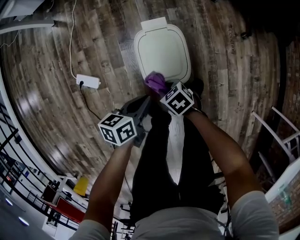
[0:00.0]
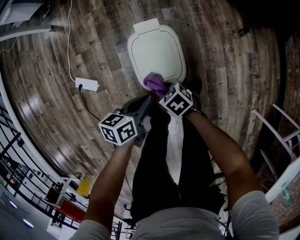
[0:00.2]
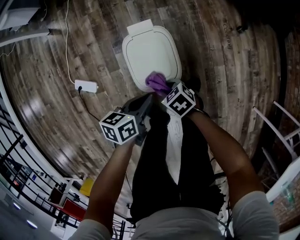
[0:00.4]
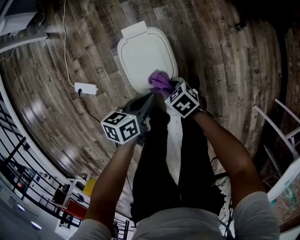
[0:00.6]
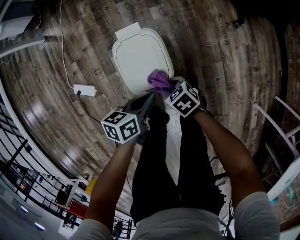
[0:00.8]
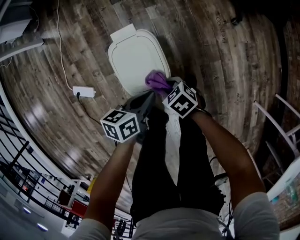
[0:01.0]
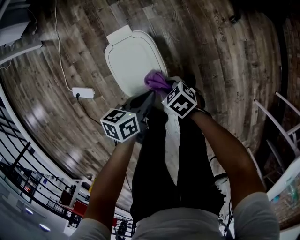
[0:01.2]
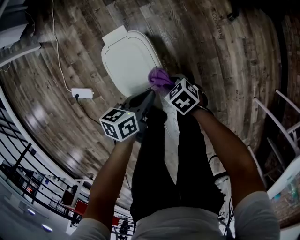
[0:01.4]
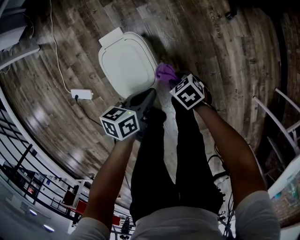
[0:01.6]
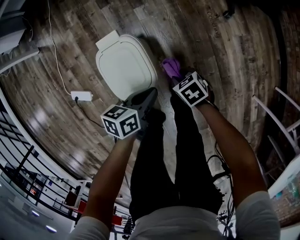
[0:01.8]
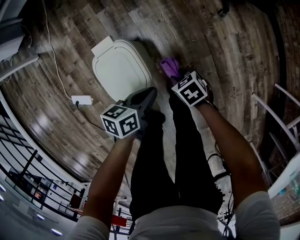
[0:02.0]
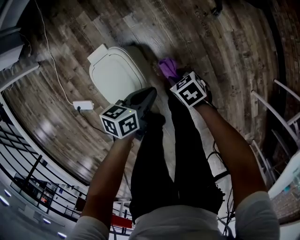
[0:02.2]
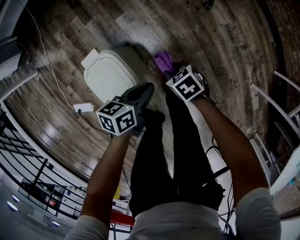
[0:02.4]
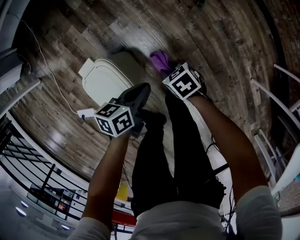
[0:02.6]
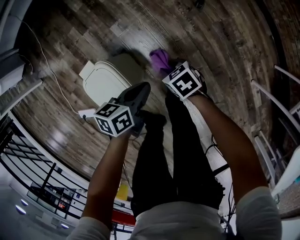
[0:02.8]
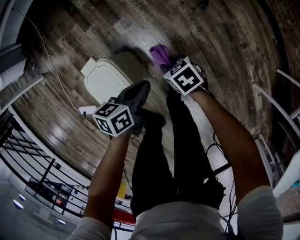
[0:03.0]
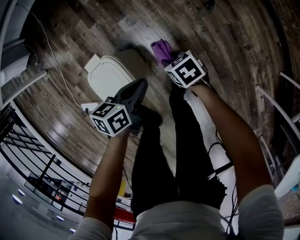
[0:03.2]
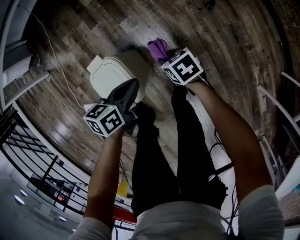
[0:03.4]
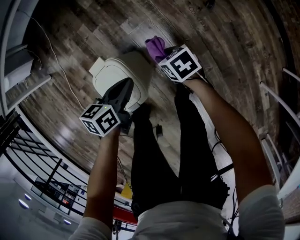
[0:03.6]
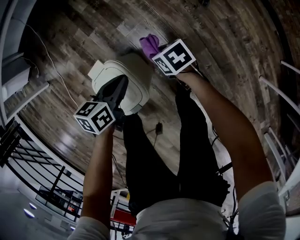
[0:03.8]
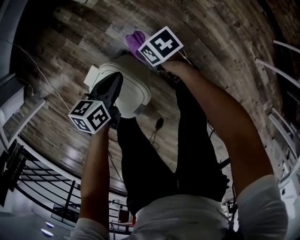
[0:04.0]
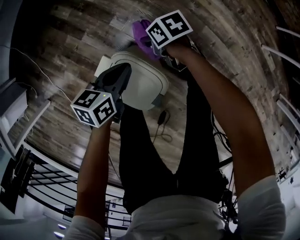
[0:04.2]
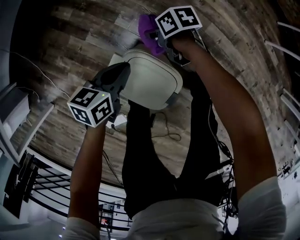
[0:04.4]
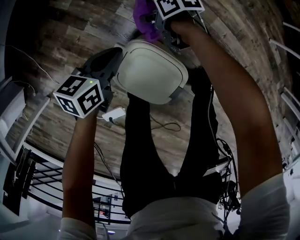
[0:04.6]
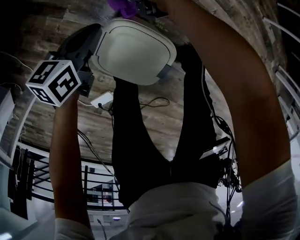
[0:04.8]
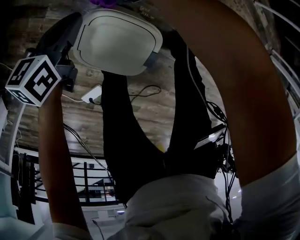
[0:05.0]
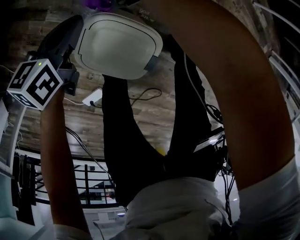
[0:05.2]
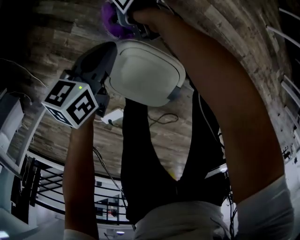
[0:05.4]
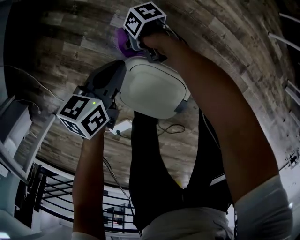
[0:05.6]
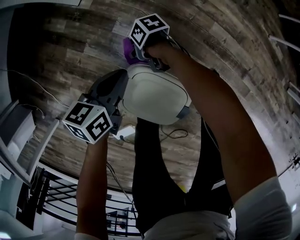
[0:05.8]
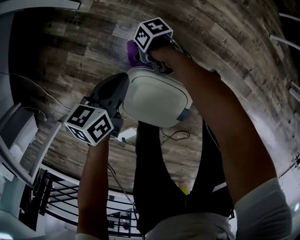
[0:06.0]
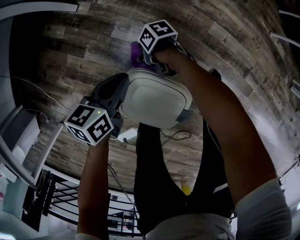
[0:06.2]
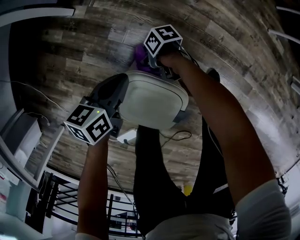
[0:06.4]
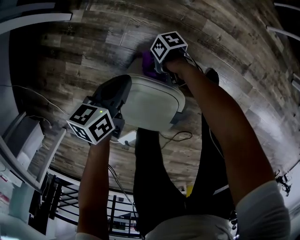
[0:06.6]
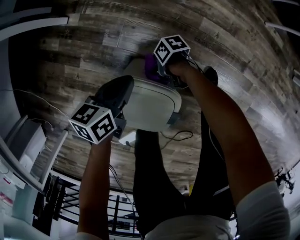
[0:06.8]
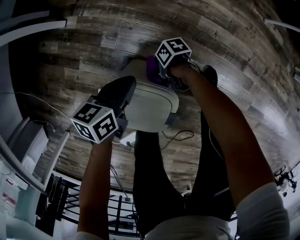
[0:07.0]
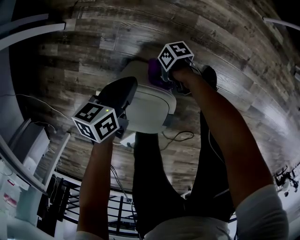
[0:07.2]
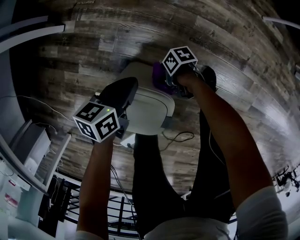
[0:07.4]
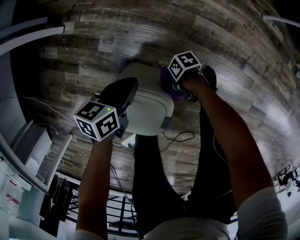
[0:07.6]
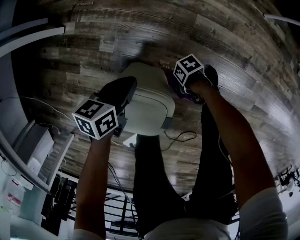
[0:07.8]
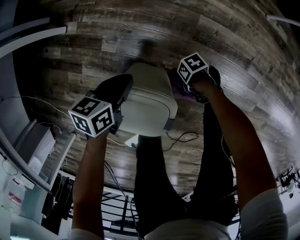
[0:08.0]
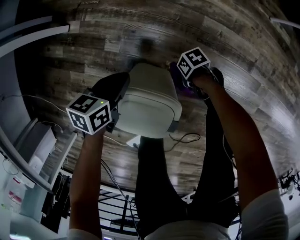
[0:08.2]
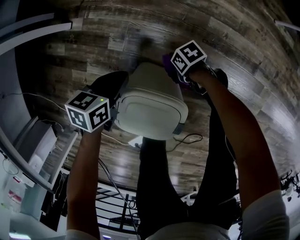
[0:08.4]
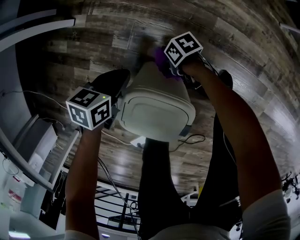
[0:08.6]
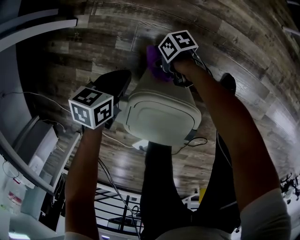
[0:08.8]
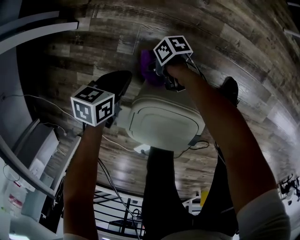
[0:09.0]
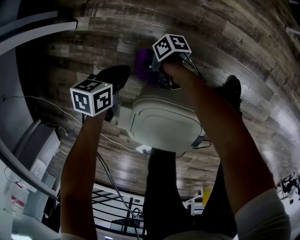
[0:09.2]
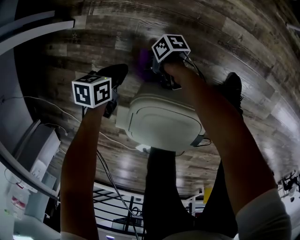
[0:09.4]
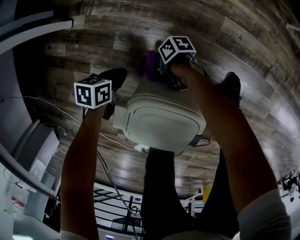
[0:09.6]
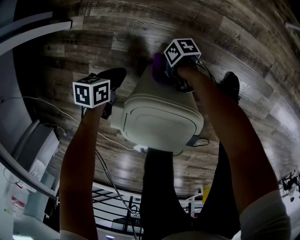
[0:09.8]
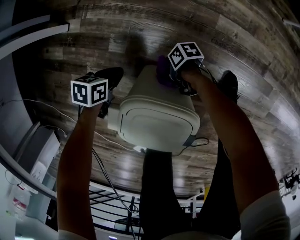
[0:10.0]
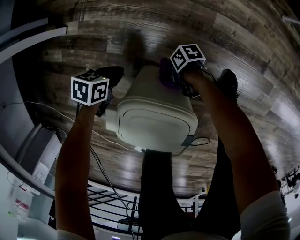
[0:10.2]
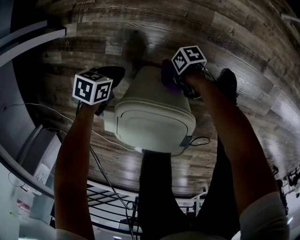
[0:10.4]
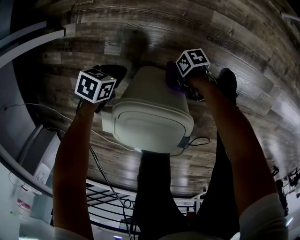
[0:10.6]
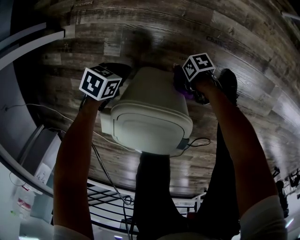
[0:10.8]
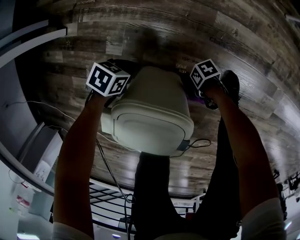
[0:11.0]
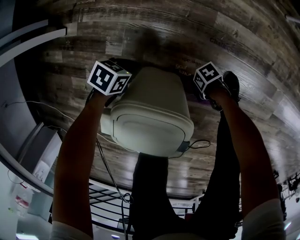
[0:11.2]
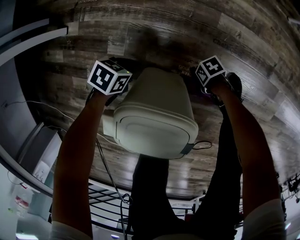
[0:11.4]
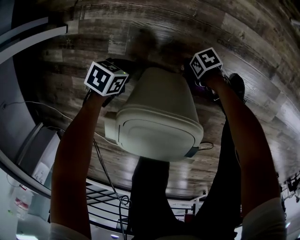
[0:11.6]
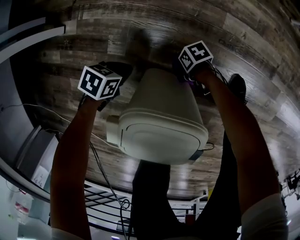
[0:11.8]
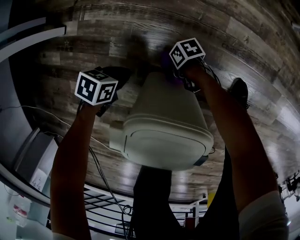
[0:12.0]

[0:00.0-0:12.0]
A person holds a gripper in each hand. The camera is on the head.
0:00.0 to 0:01.6: The left gripper shifts by roughly 15 cm.
0:01.6 to 0:03.0: The left gripper ends up some 15 cm from where it was.
0:03.0 to 0:04.4: The left gripper moves about 20 cm, and turns by approximately 30 degrees.
0:06.0 to 0:07.6: The left gripper shifts by about 15 cm.
0:07.6 to 0:09.0: The left gripper ends up some 15 cm from where it was.
0:09.0 to 0:10.4: The left gripper is displaced downward by some 10 cm.
0:10.4 to 0:12.0: The left gripper moves downward, approximately 5 cm.

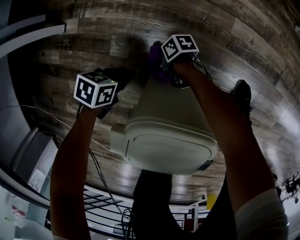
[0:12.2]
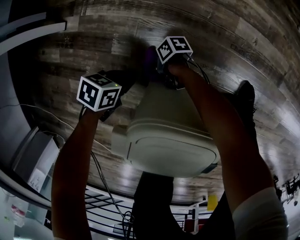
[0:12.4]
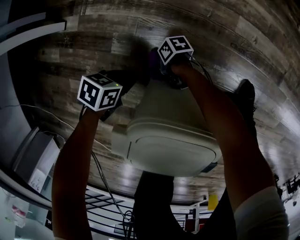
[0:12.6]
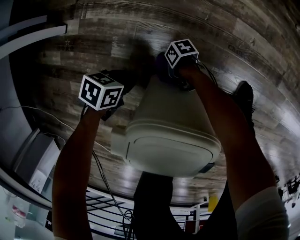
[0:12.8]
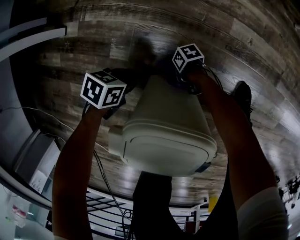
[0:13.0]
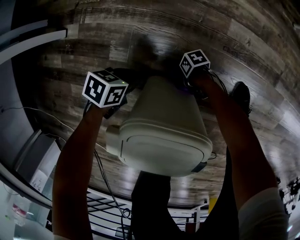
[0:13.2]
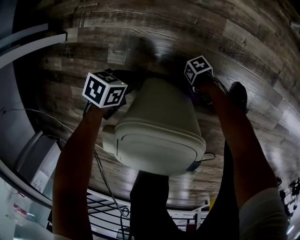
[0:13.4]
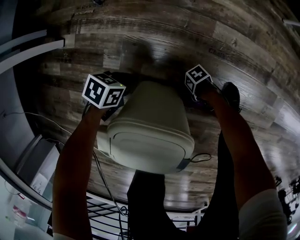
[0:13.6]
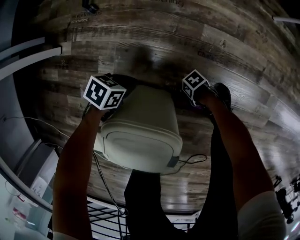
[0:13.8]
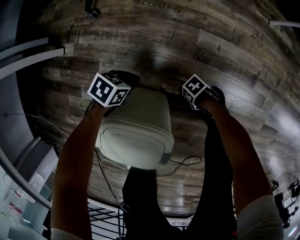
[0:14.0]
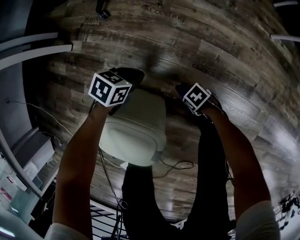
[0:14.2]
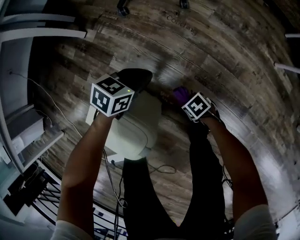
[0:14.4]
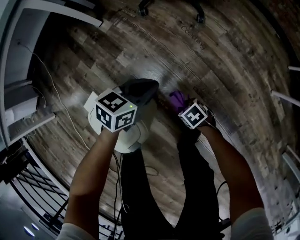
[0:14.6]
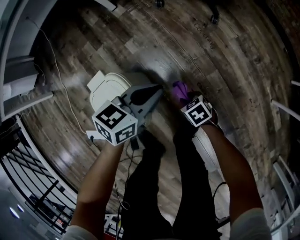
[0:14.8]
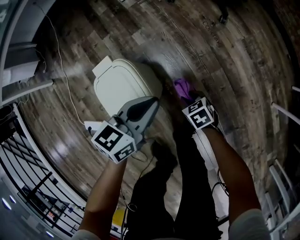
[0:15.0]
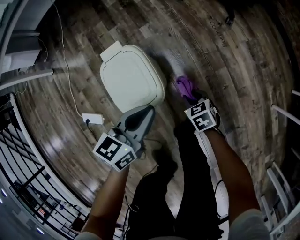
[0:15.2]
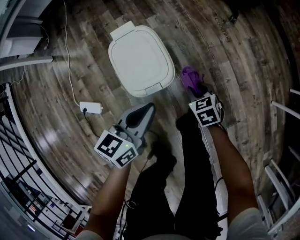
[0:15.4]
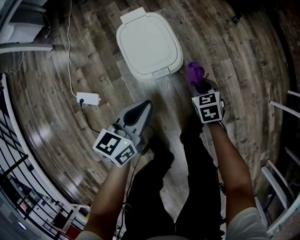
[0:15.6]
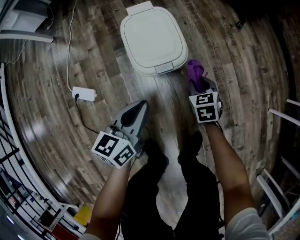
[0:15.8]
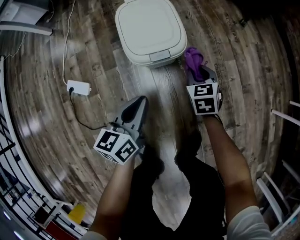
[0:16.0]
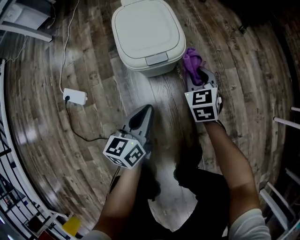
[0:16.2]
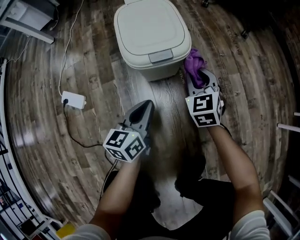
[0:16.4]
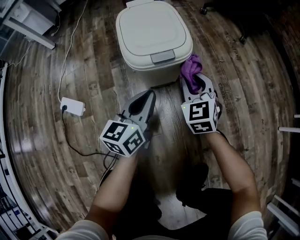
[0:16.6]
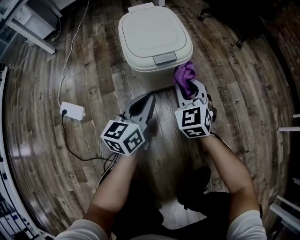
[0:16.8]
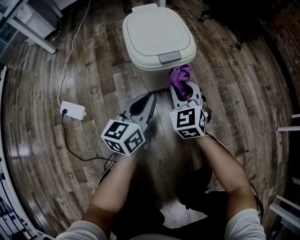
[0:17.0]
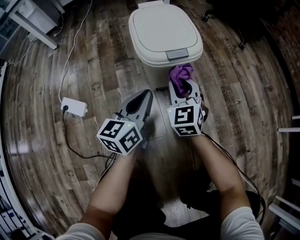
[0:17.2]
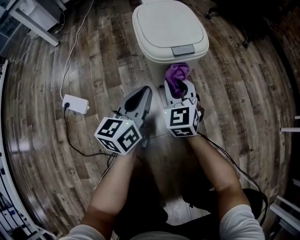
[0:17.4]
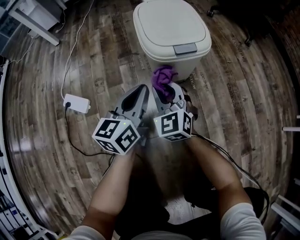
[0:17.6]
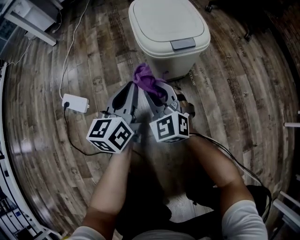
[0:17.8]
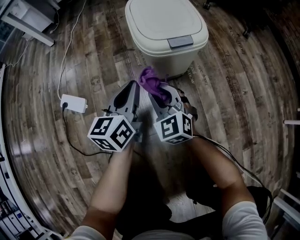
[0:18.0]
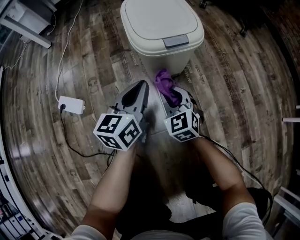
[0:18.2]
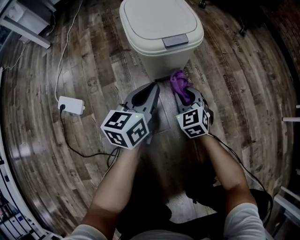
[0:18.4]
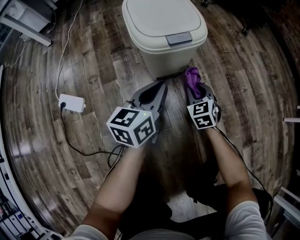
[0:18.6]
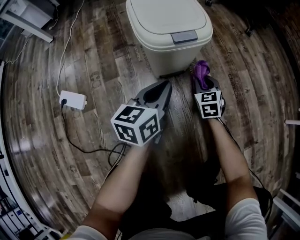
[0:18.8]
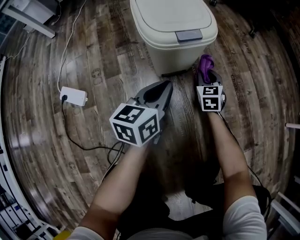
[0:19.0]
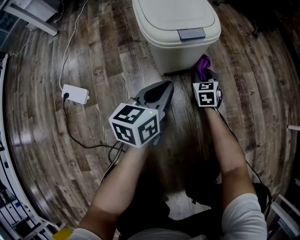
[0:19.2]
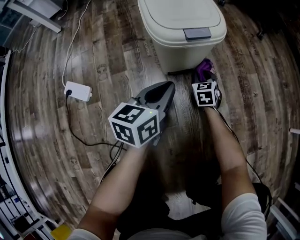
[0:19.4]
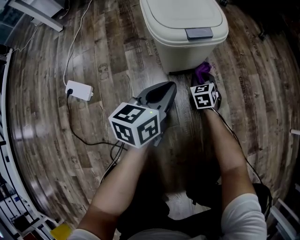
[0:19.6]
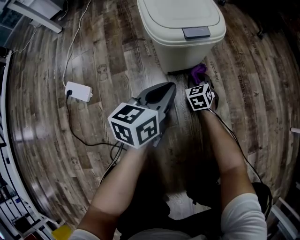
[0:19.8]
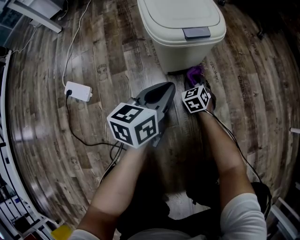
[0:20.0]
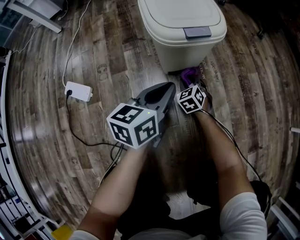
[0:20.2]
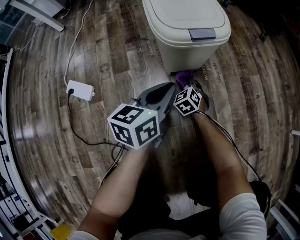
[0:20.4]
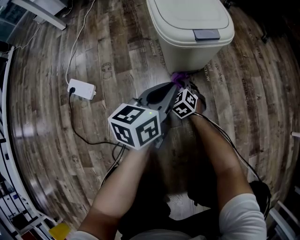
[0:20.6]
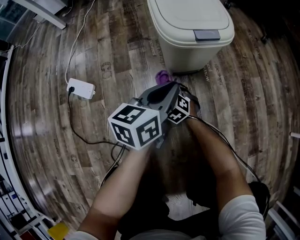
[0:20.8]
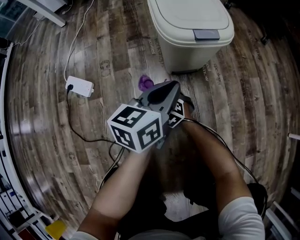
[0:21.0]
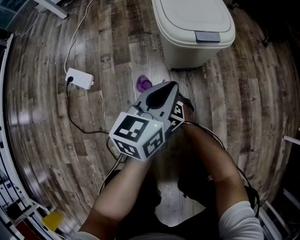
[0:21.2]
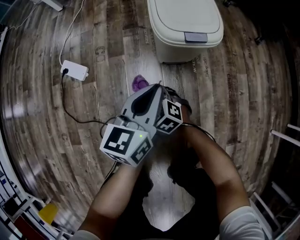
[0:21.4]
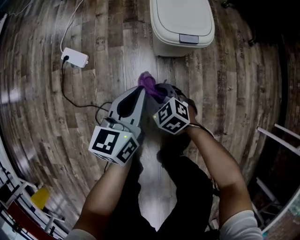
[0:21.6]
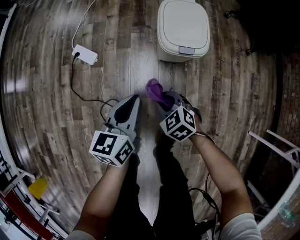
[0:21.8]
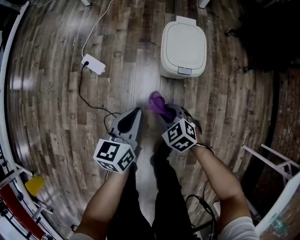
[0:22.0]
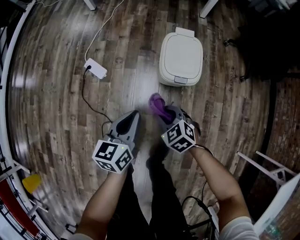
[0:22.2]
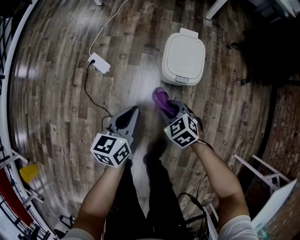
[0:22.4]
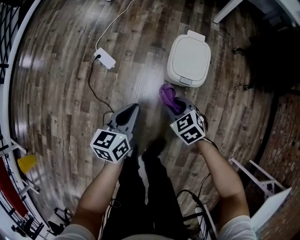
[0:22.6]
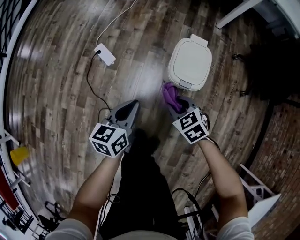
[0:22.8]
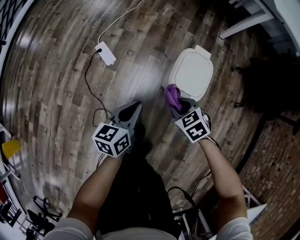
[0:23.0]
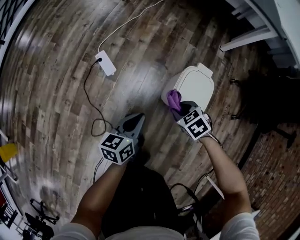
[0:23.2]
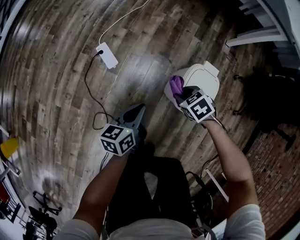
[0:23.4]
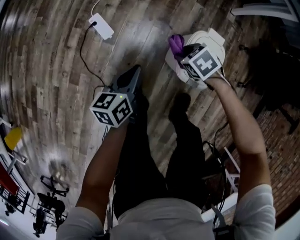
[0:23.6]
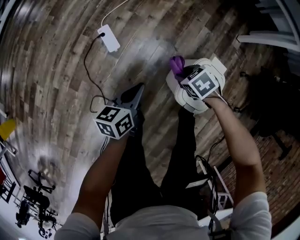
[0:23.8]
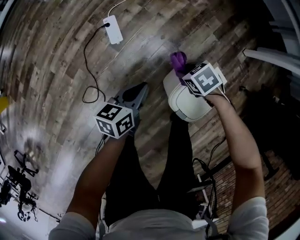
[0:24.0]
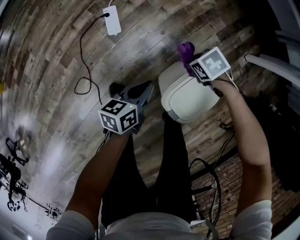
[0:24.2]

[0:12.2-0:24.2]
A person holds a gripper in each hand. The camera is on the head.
0:12.2 to 0:13.8: The left gripper shifts by roughly 15 cm.
0:13.8 to 0:15.2: The left gripper heads upward, covering some 30 cm, and rotates about 90 degrees.
0:15.2 to 0:16.6: The left gripper shifts about 20 cm downward, and swivels some 30 degrees.
0:18.2 to 0:19.8: The left gripper shifts by some 5 cm.
0:19.8 to 0:21.2: The left gripper travels upward by some 5 cm.
0:21.2 to 0:22.6: The left gripper is displaced upward by about 25 cm, and turns by some 30 degrees.
0:22.6 to 0:24.2: The left gripper moves approximately 25 cm, and swivels about 30 degrees.
